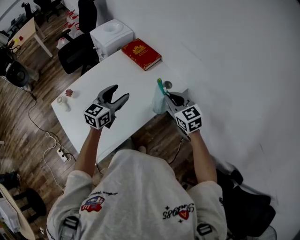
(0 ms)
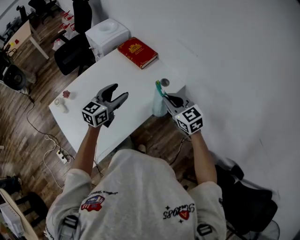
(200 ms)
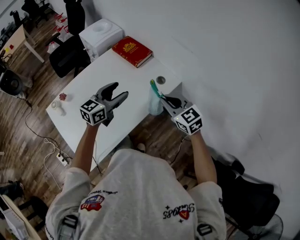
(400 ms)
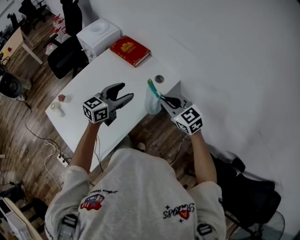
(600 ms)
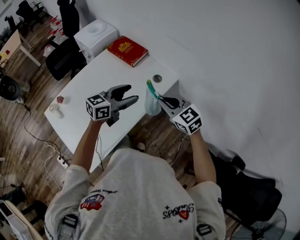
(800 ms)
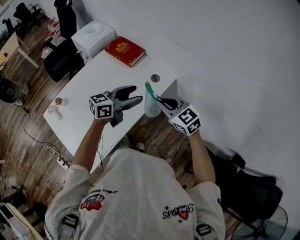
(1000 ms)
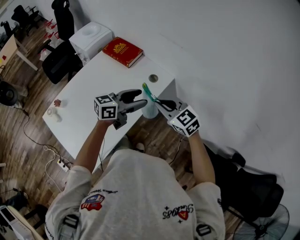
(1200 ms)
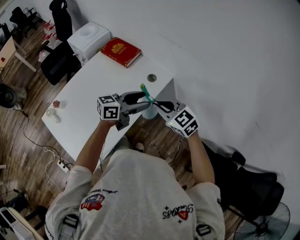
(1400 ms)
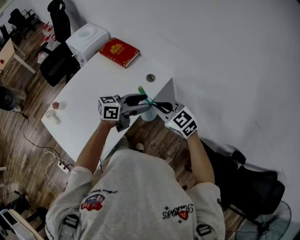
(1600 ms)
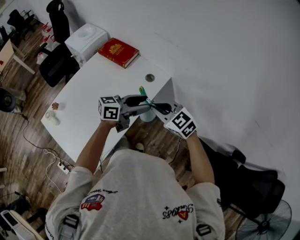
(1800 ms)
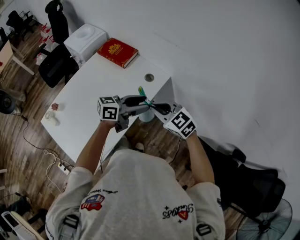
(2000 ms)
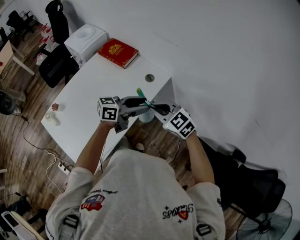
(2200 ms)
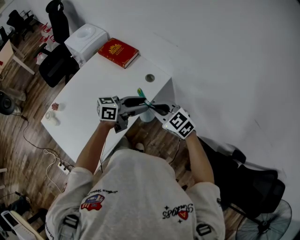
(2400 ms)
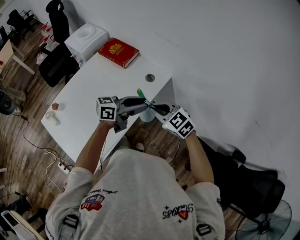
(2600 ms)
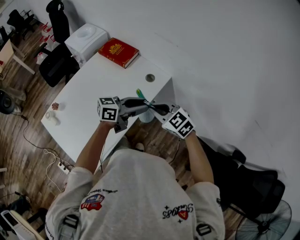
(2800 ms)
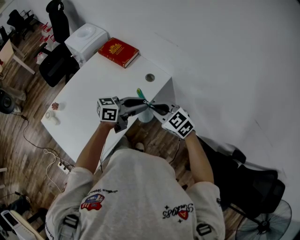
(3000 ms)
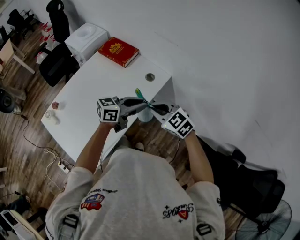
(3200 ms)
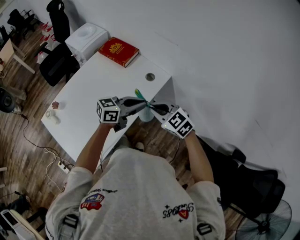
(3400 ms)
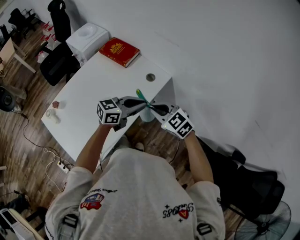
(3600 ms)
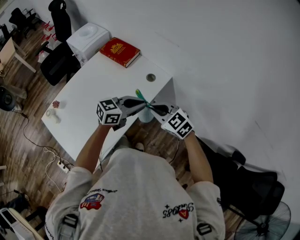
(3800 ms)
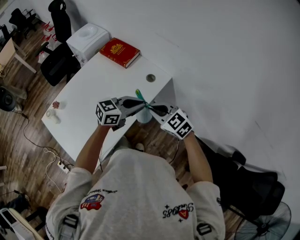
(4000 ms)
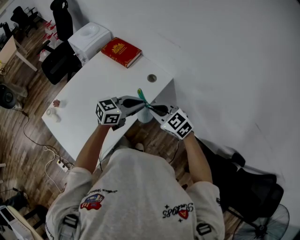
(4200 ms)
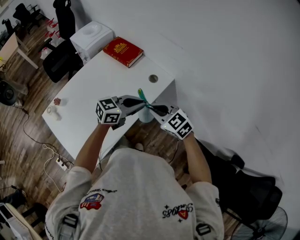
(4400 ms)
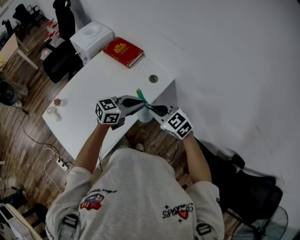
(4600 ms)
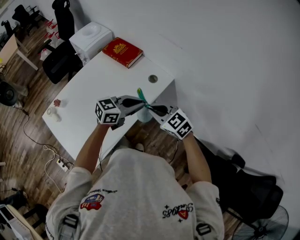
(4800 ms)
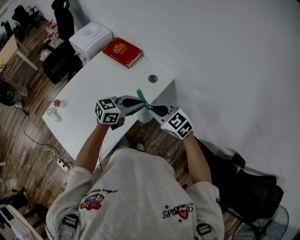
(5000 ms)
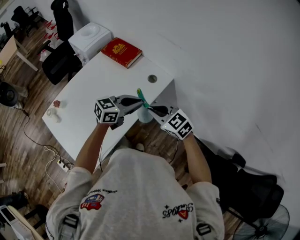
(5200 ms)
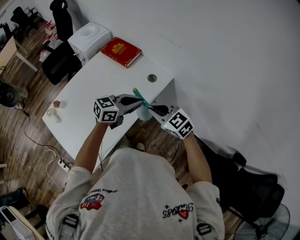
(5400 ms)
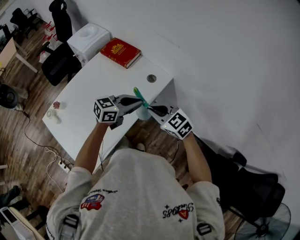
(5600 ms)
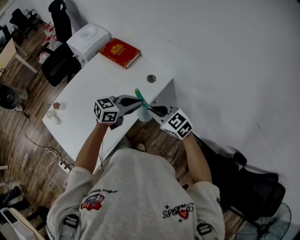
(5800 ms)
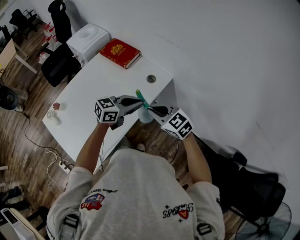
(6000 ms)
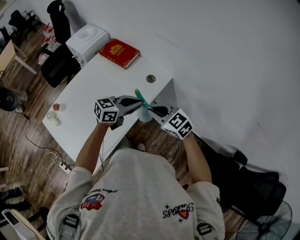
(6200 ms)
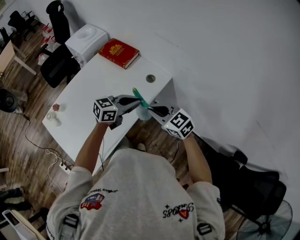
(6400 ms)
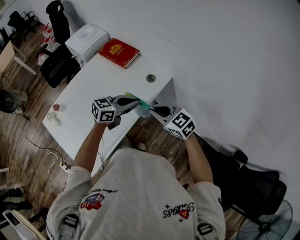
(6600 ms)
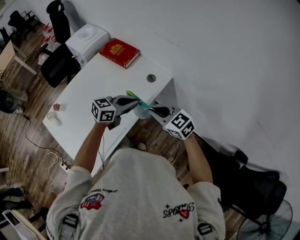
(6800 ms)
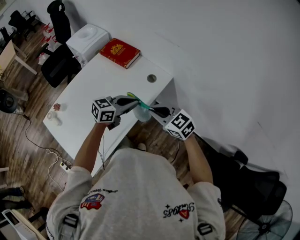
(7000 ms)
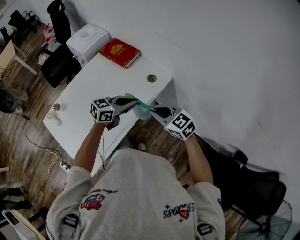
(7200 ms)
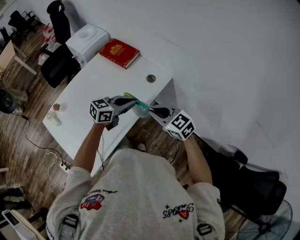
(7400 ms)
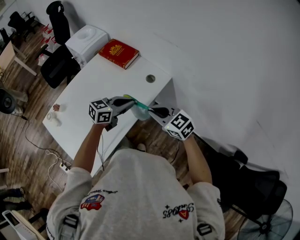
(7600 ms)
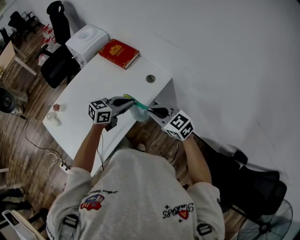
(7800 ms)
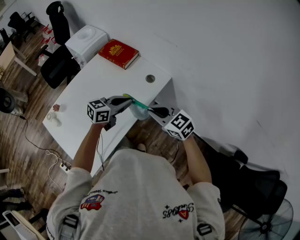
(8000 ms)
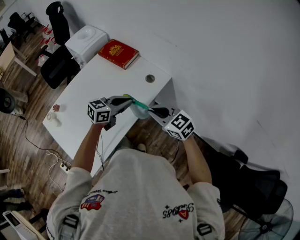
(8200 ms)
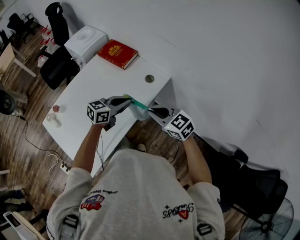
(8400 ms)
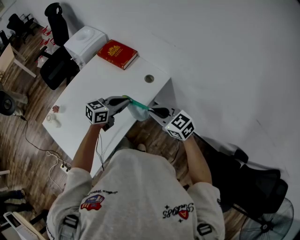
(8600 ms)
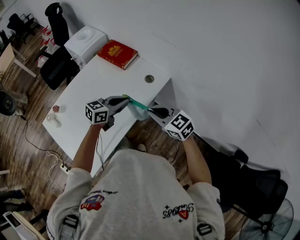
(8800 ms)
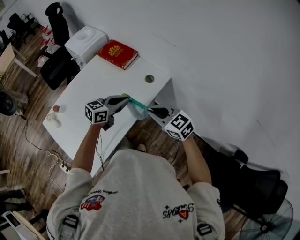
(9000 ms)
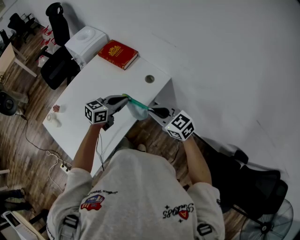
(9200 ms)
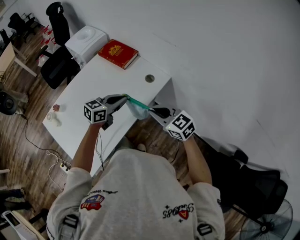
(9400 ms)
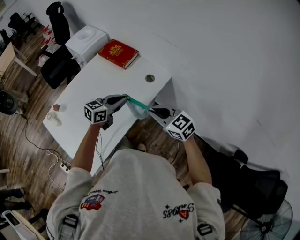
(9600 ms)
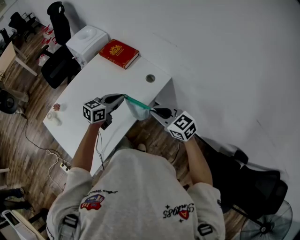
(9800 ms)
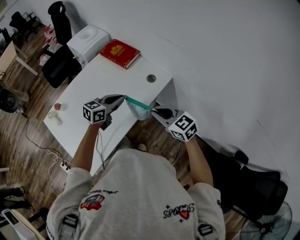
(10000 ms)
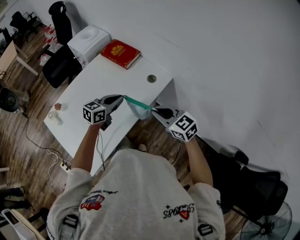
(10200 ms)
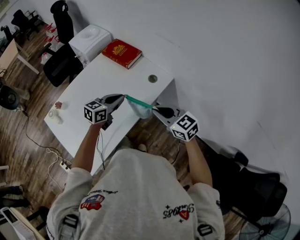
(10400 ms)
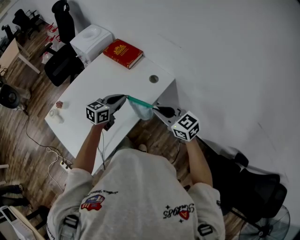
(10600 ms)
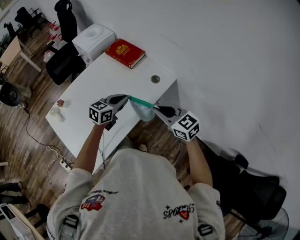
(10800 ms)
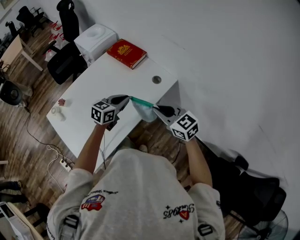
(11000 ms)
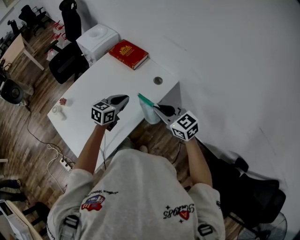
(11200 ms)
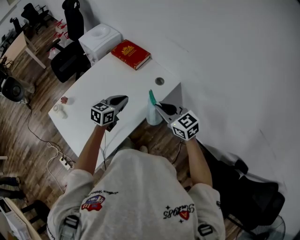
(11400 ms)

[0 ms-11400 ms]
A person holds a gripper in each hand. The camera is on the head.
0 ms to 1400 ms: The left gripper heads to the right, covering approximately 20 cm, and swivels about 50 degrees, while the right gripper travels backward by about 5 cm.
1400 ms to 2800 ms: The left gripper closes.
2800 ms to 4200 ms: The left gripper swivels some 20 degrees, and closes its fingers.
4200 ms to 7200 ms: The grippers move only a little.
7200 ms to 8600 ms: There are only small adjustments of the grippers.
8600 ms to 10000 ms: The grippers make only small movements.
10000 ms to 11400 ms: The grippers move only a little.

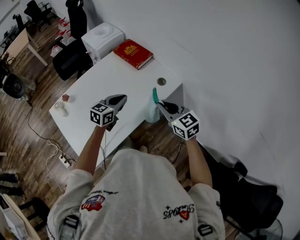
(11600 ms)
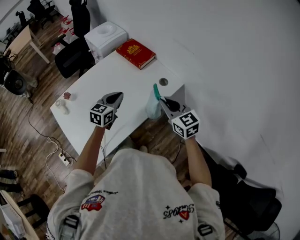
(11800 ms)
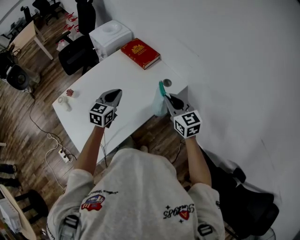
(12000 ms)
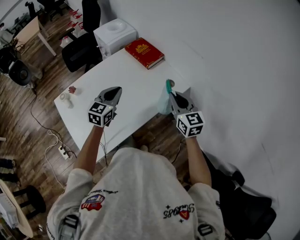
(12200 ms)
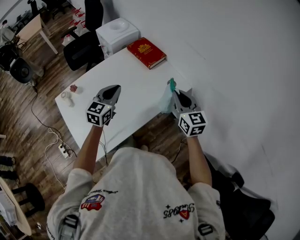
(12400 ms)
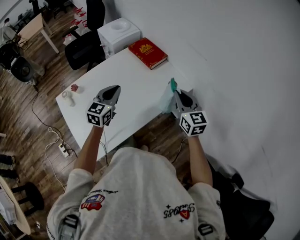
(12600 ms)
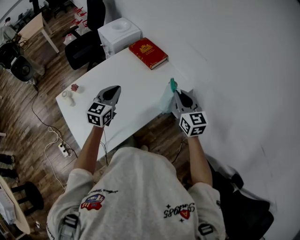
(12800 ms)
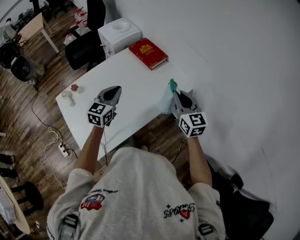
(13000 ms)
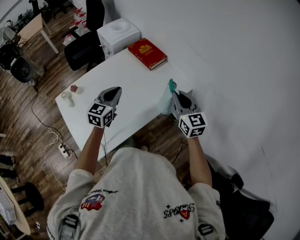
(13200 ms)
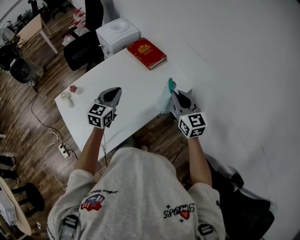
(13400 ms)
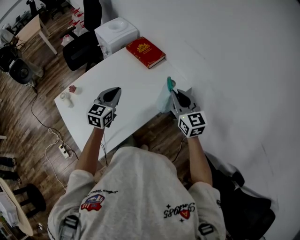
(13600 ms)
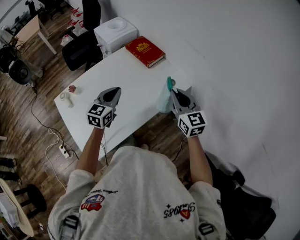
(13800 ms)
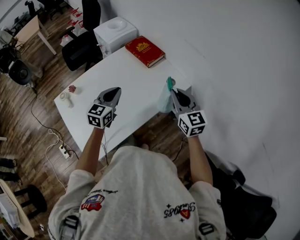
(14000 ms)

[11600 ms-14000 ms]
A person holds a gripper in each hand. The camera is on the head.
11600 ms to 12800 ms: The left gripper shifts approximately 10 cm to the left and upward, and turns by about 20 degrees. The right gripper travels forward by some 5 cm.
12800 ms to 14000 ms: There are only small adjustments of the grippers.

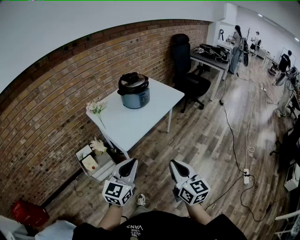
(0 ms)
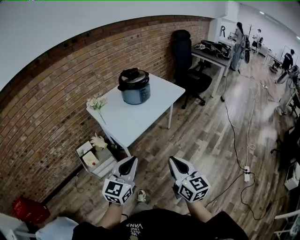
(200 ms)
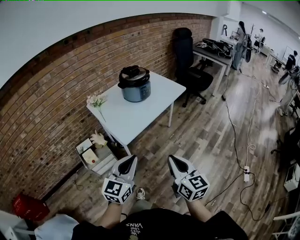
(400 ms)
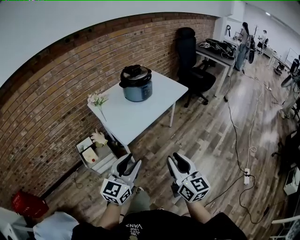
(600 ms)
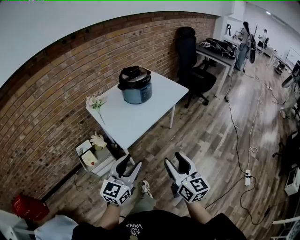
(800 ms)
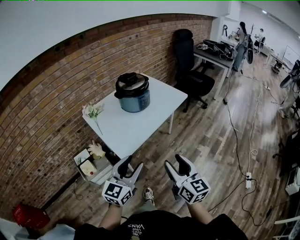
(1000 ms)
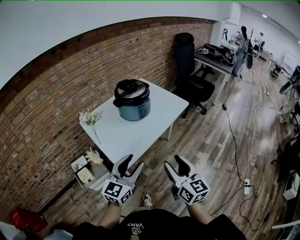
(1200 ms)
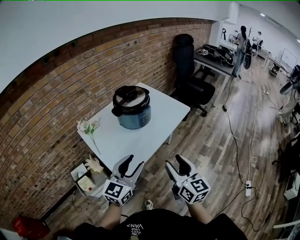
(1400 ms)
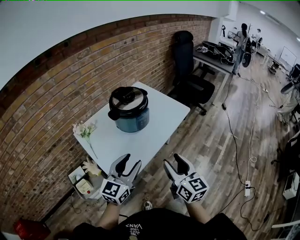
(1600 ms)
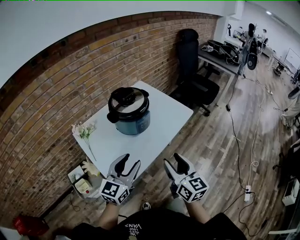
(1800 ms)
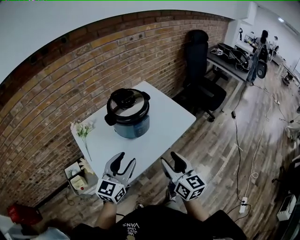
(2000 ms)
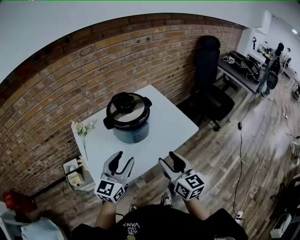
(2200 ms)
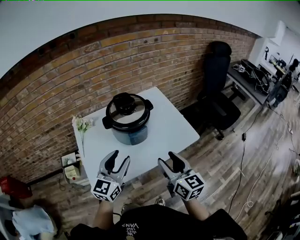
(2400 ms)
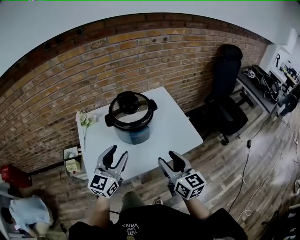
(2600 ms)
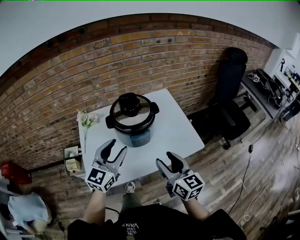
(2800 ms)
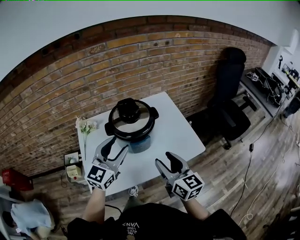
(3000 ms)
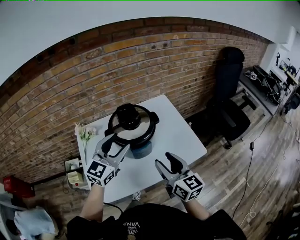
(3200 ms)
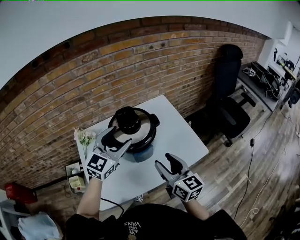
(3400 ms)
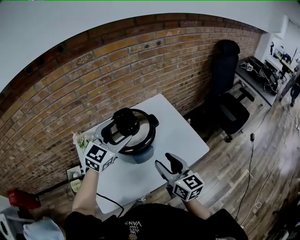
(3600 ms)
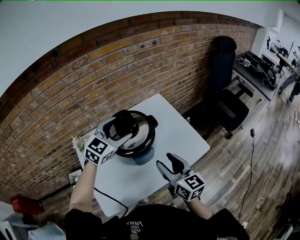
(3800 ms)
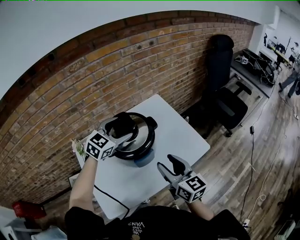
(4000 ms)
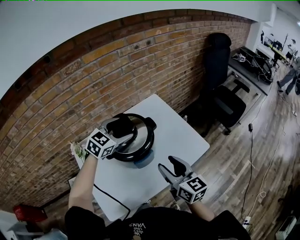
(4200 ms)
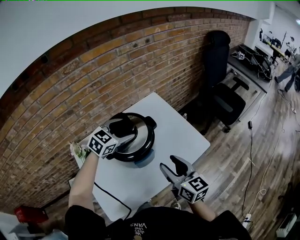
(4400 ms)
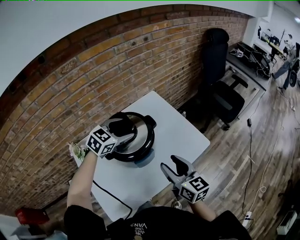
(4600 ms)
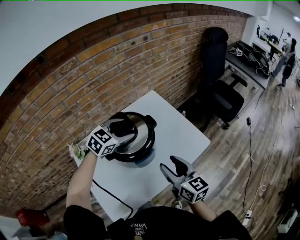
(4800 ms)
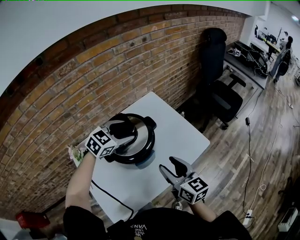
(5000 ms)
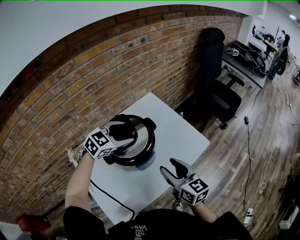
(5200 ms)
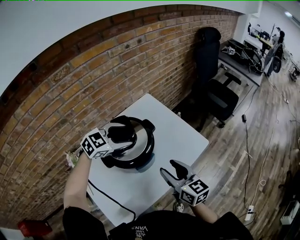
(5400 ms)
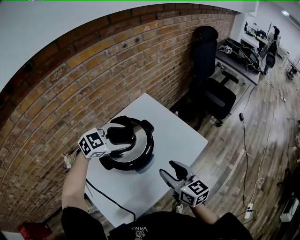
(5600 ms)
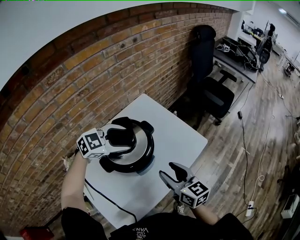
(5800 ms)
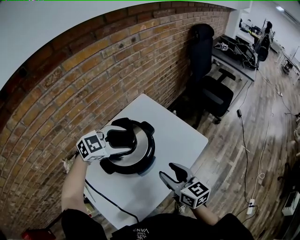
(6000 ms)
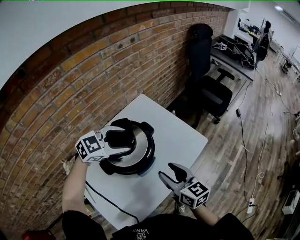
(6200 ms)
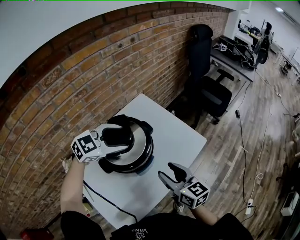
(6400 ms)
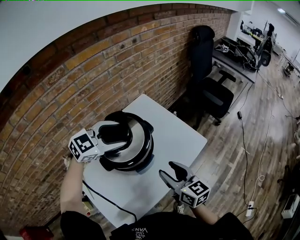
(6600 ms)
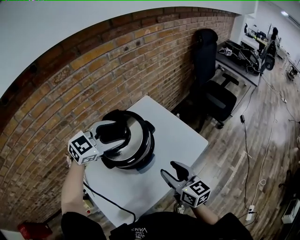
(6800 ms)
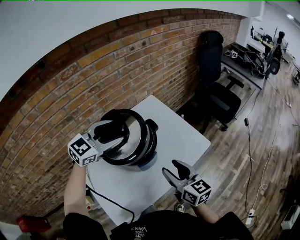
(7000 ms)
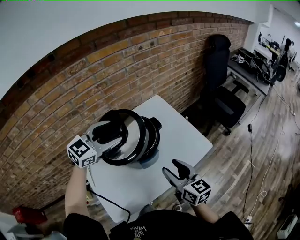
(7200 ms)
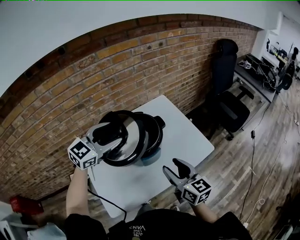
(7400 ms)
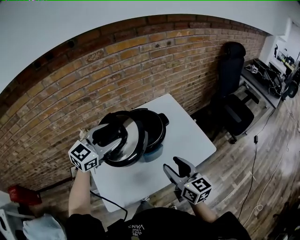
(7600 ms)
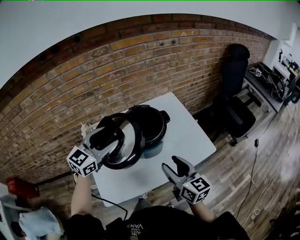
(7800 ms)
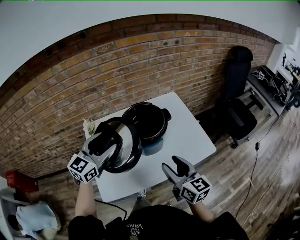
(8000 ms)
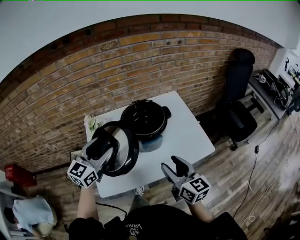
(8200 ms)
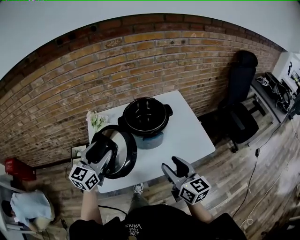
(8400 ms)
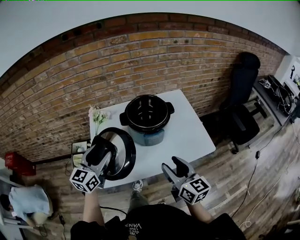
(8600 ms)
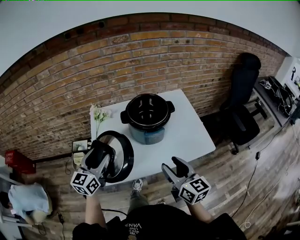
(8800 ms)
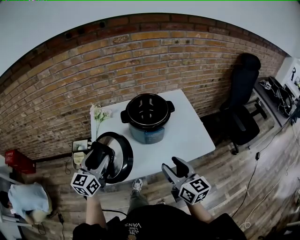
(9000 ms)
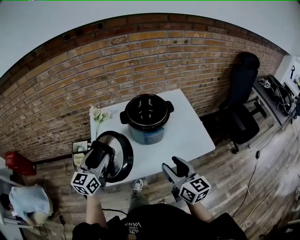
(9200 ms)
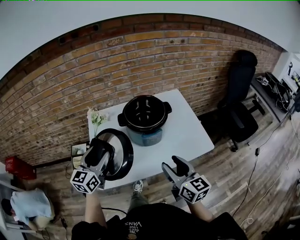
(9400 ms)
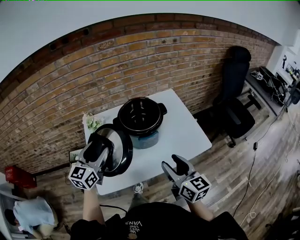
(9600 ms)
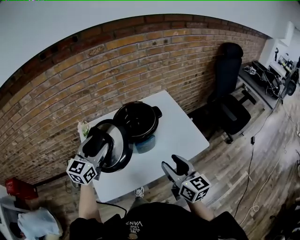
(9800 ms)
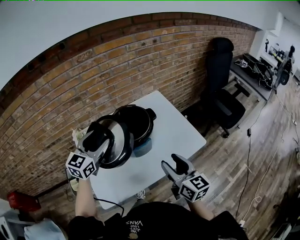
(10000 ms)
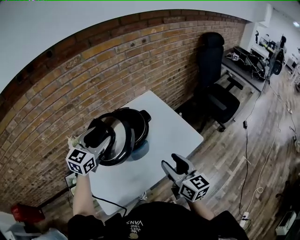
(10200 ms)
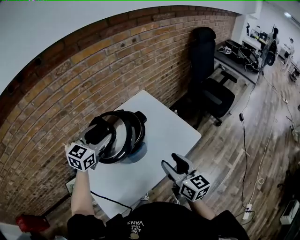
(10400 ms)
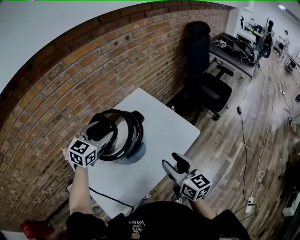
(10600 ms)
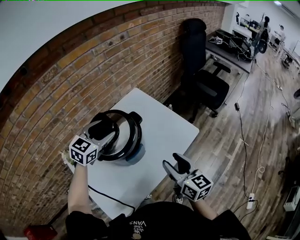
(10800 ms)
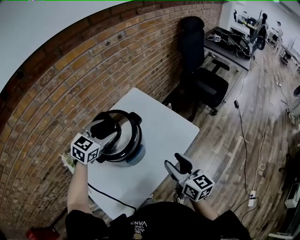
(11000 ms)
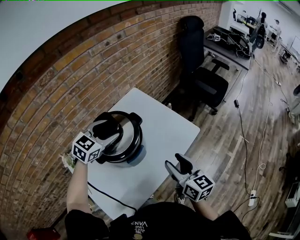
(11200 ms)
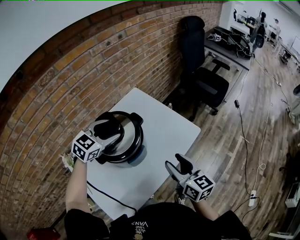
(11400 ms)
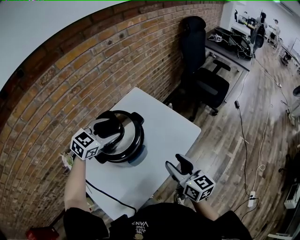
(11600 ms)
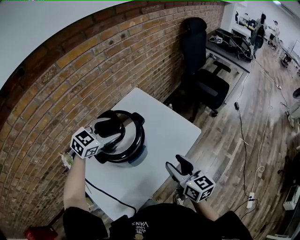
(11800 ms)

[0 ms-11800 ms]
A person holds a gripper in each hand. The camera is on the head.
0 ms to 1400 ms: The grippers both shift forward by approximately 25 cm. The right gripper opens its fingers. The left gripper opens its fingers.
1400 ms to 3000 ms: The left gripper ends up roughly 25 cm from where it was, and swivels approximately 30 degrees. The right gripper shifts by about 30 cm, and rotates some 30 degrees.
3000 ms to 4400 ms: The left gripper travels forward by about 20 cm, changes its angle by about 40 degrees, and opens. The right gripper moves forward, roughly 5 cm.
4400 ms to 6000 ms: The left gripper turns by about 30 degrees.
6000 ms to 7400 ms: The left gripper goes some 15 cm upward, backward and to the left, and turns by approximately 40 degrees.
7400 ms to 8800 ms: The right gripper shifts by some 10 cm. The left gripper moves about 25 cm, and swivels some 50 degrees.
8800 ms to 10400 ms: The right gripper changes place by about 5 cm, and turns by approximately 20 degrees; the left gripper changes place by about 30 cm, and changes its angle by approximately 40 degrees.
10400 ms to 11800 ms: The left gripper moves forward and to the right, approximately 10 cm, and rotates roughly 30 degrees.
